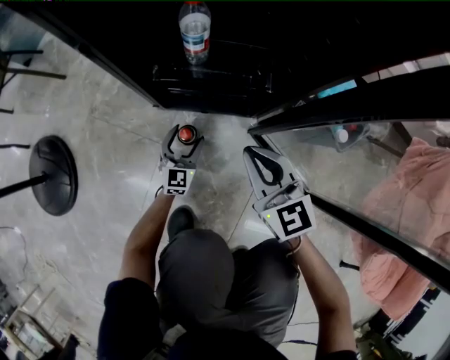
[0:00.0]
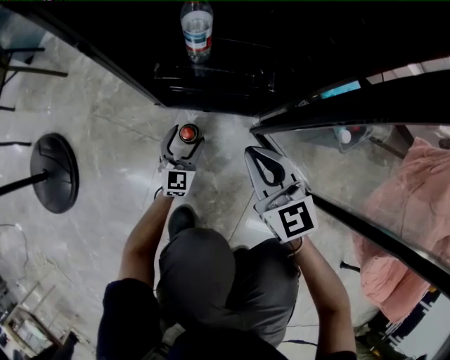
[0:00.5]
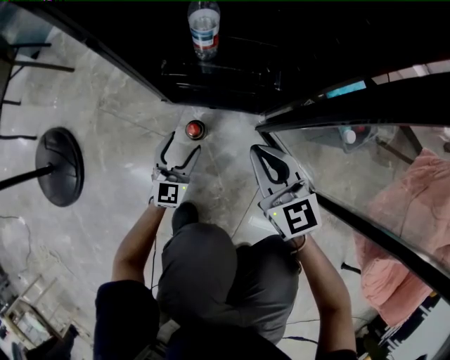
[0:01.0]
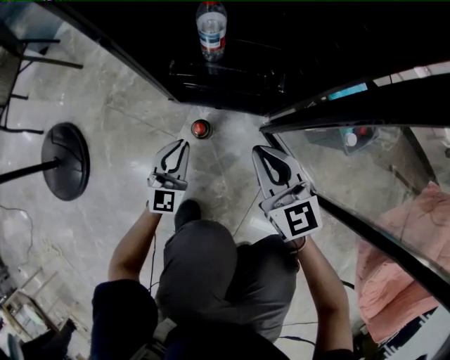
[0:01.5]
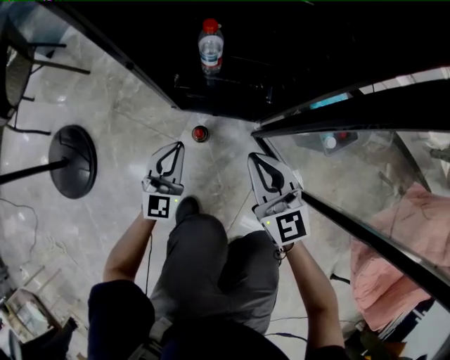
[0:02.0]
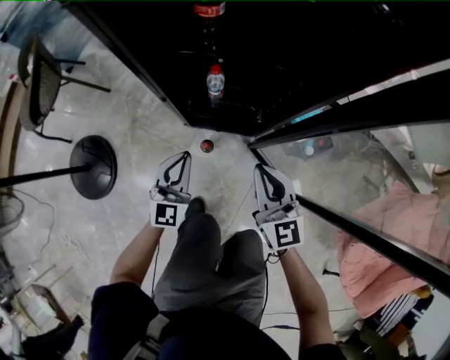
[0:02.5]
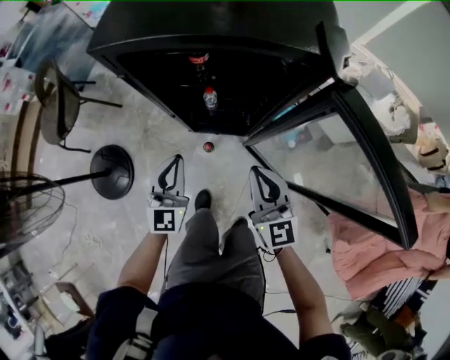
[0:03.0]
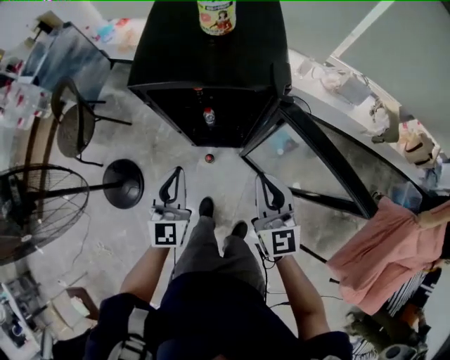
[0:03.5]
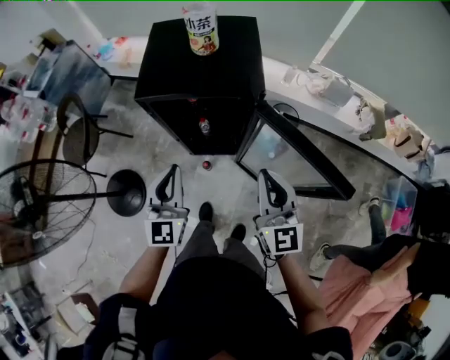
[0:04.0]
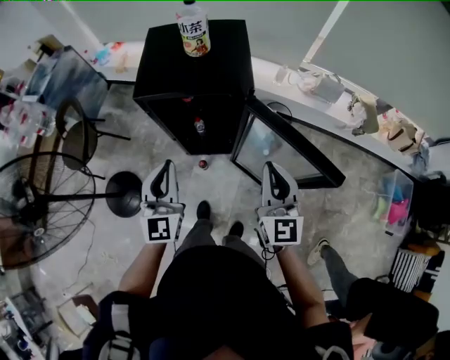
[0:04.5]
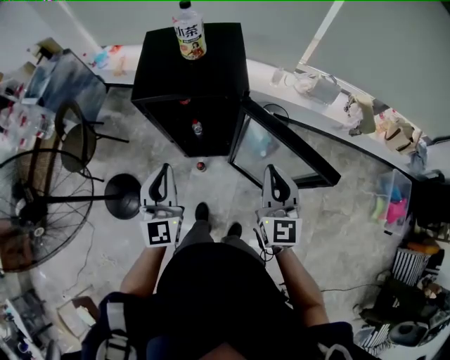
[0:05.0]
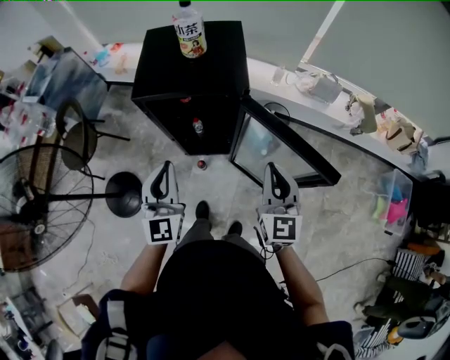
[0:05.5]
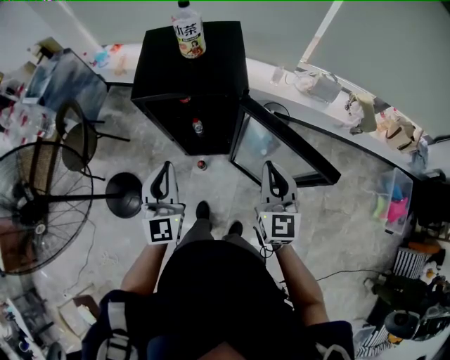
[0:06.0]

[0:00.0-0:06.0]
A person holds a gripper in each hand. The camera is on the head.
0:00.0 to 0:02.0: The left gripper travels upward by some 25 cm, and closes its fingers; the right gripper goes some 10 cm upward.
0:02.0 to 0:04.0: The two grippers go some 70 cm upward. The right gripper rotates approximately 20 degrees.
0:04.0 to 0:06.0: The left gripper shifts by roughly 5 cm. Meanwhile the right gripper moves approximately 5 cm.

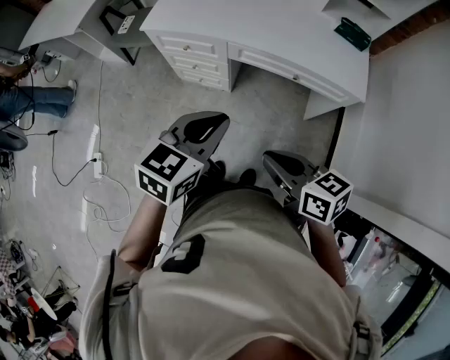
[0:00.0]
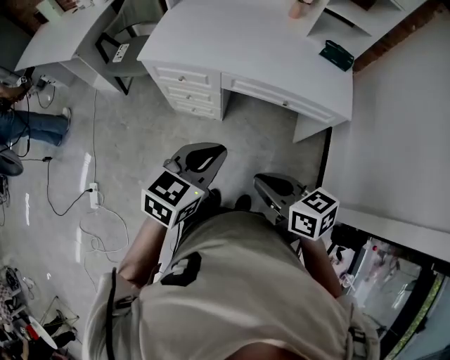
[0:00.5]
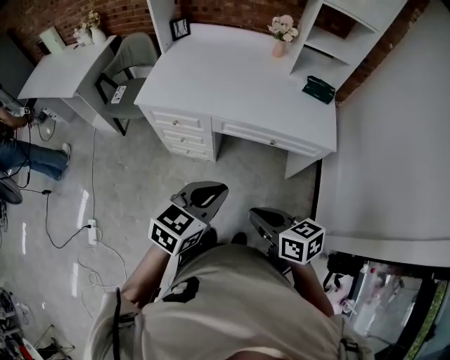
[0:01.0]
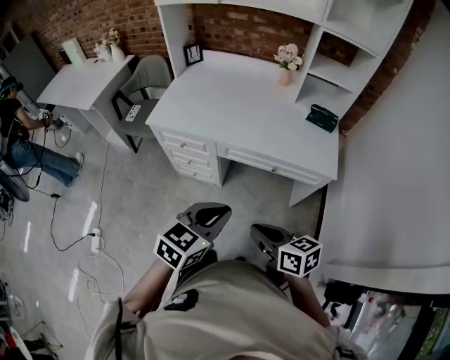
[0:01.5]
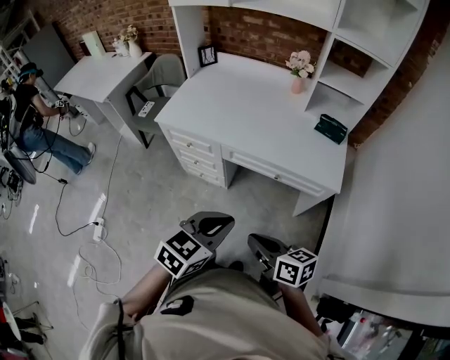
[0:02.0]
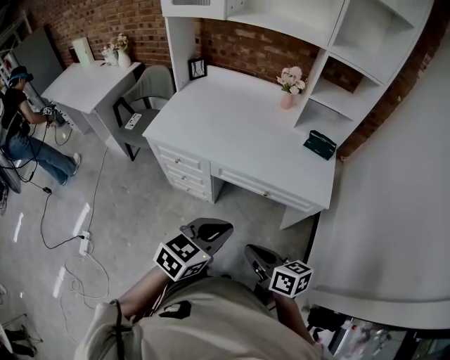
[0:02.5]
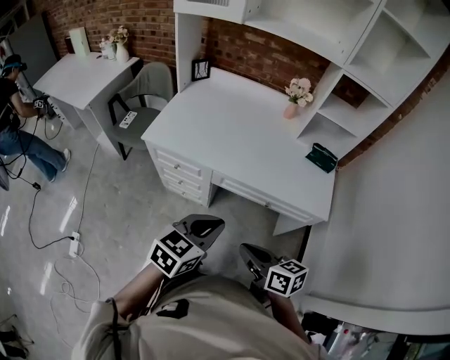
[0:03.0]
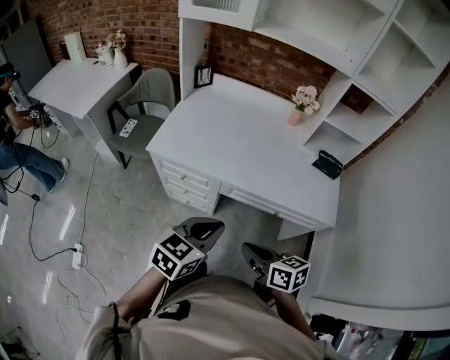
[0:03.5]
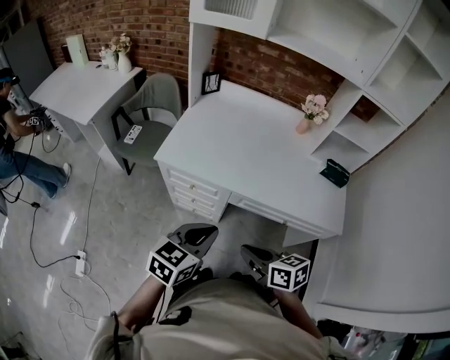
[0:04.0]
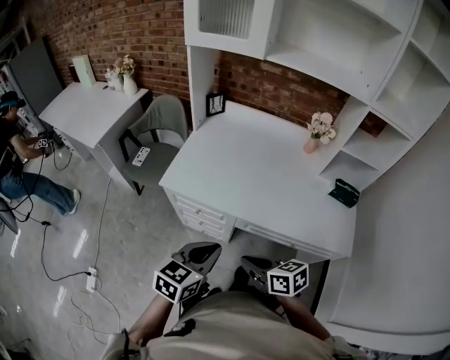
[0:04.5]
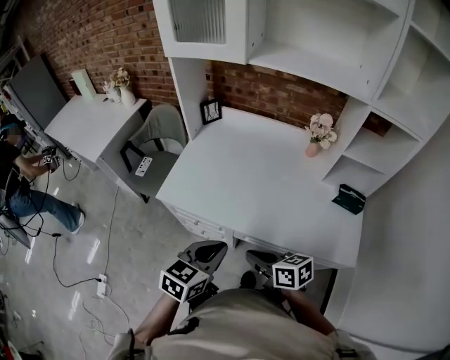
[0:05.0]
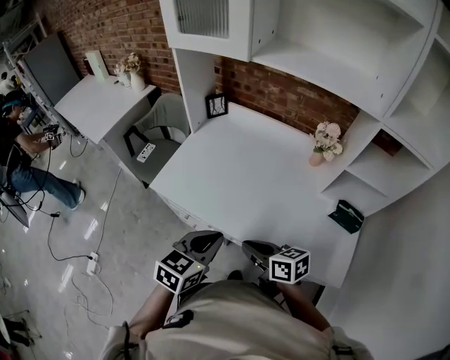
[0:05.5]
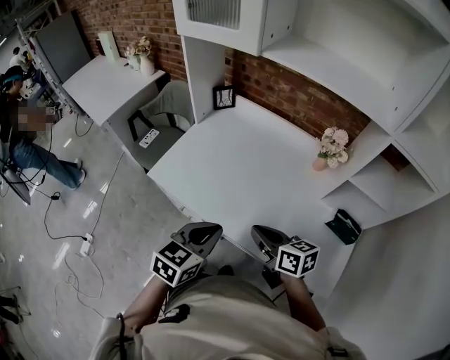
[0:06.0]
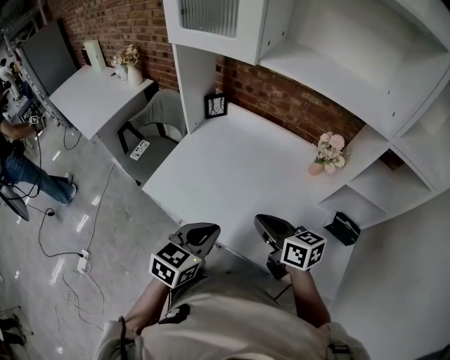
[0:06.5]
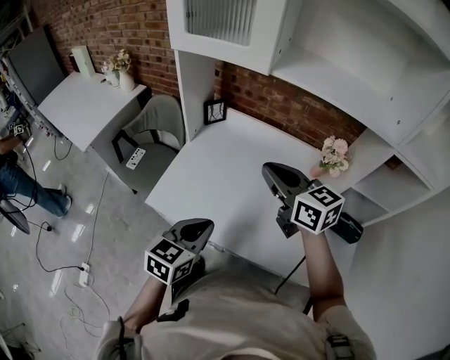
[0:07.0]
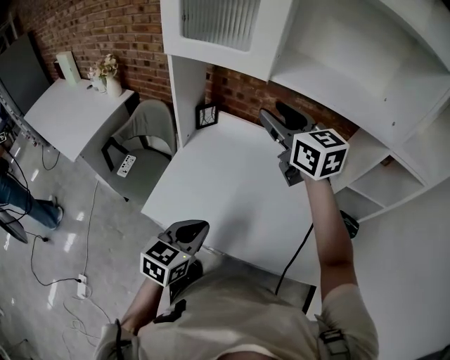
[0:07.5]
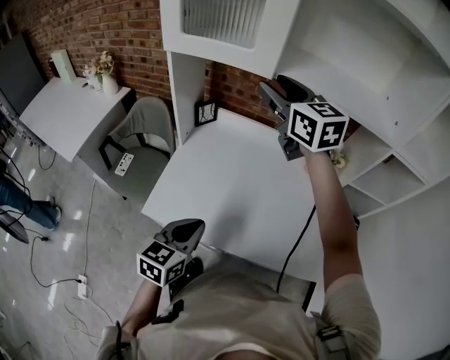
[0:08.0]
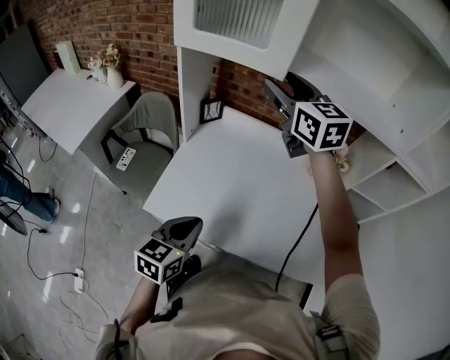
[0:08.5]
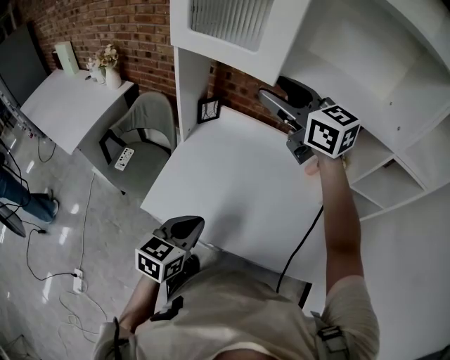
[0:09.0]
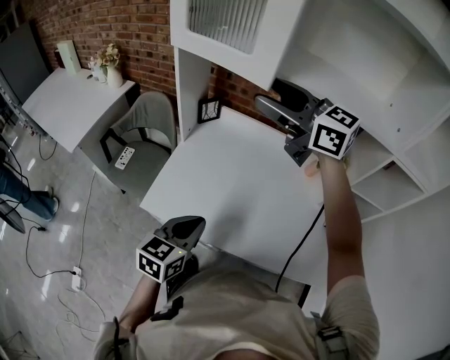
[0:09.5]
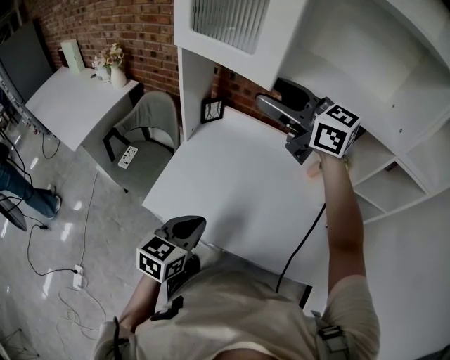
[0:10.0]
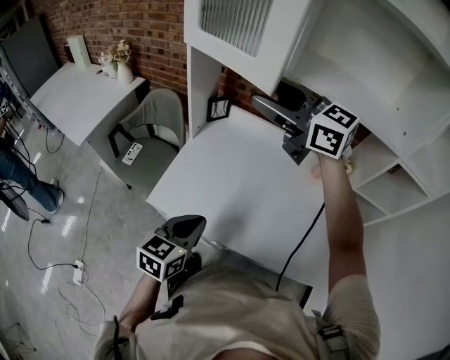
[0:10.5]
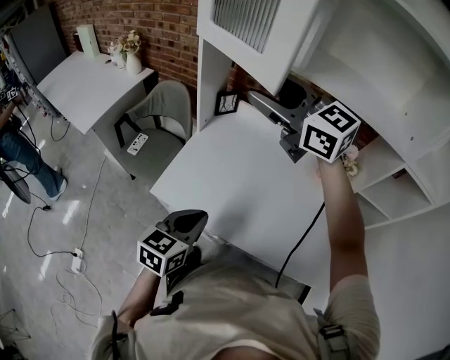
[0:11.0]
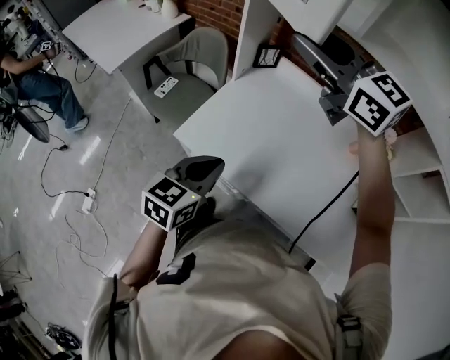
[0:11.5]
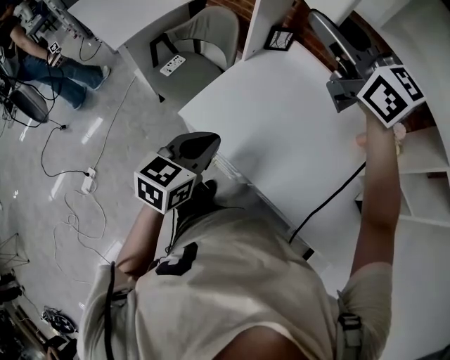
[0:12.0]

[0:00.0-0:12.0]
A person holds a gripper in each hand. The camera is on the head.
0:00.0 to 0:02.0: The right gripper ends up about 5 cm from where it was. The left gripper travels to the right by about 10 cm.
0:02.0 to 0:04.0: The right gripper goes roughly 20 cm forward and to the left; the left gripper moves to the left and forward, some 25 cm.
0:04.0 to 0:06.0: The grippers both shift forward and to the right by some 25 cm.
0:06.0 to 0:08.0: The right gripper is displaced forward and upward by about 50 cm, changes its angle by about 50 degrees, and opens. Meanwhile the left gripper moves to the left and forward, about 15 cm.
0:08.0 to 0:10.0: The right gripper moves backward, roughly 5 cm, and turns by roughly 30 degrees.
0:10.0 to 0:12.0: Both grippers travel together to the left, about 10 cm.

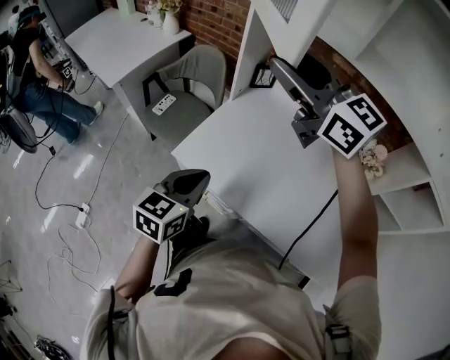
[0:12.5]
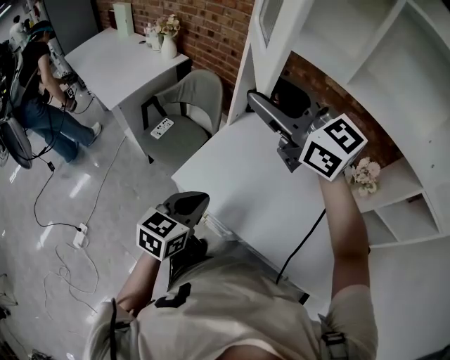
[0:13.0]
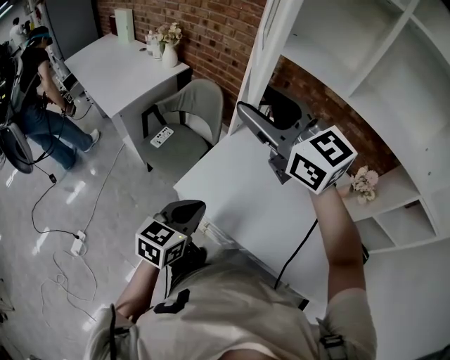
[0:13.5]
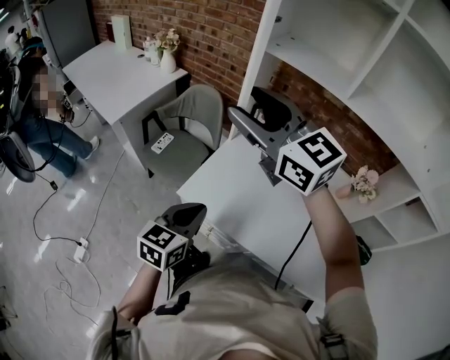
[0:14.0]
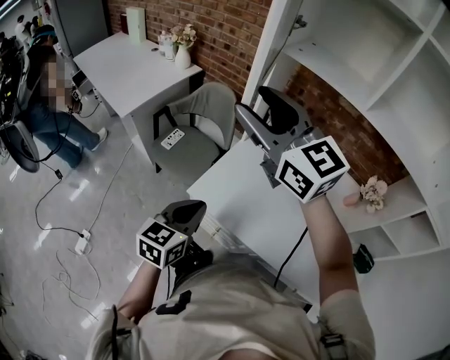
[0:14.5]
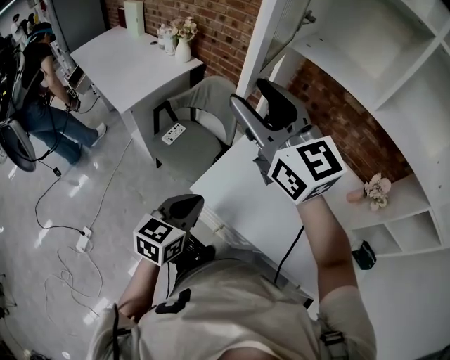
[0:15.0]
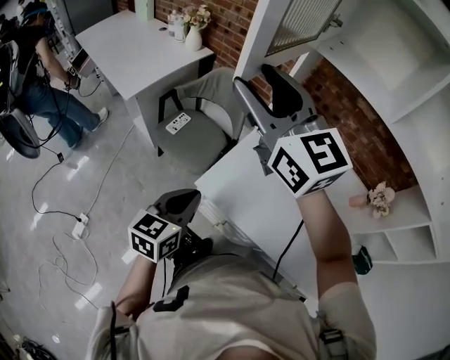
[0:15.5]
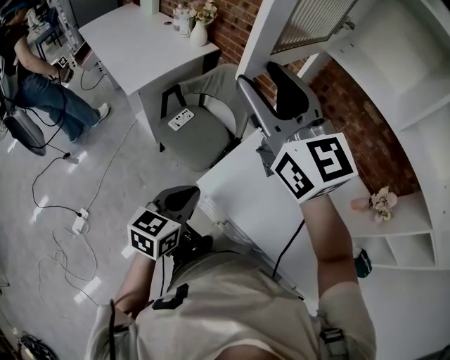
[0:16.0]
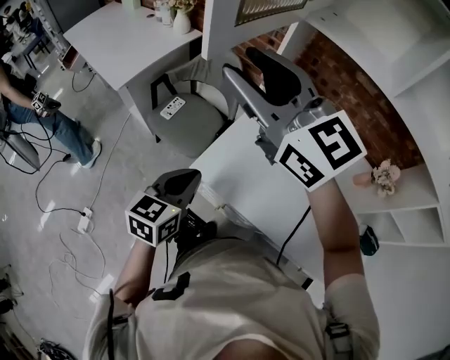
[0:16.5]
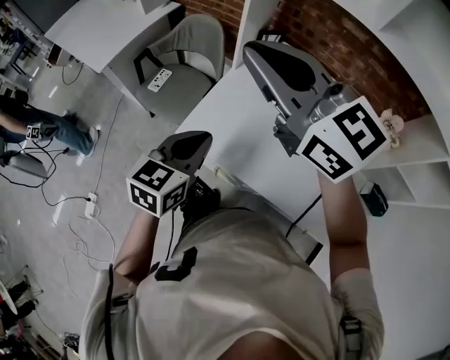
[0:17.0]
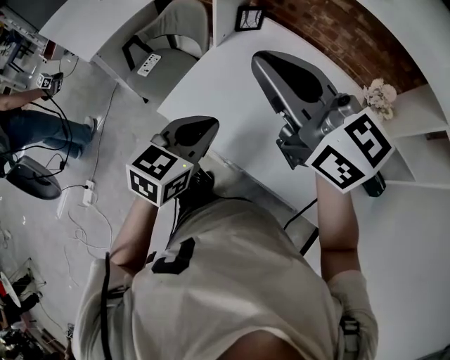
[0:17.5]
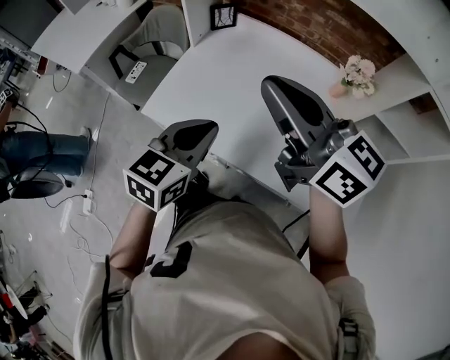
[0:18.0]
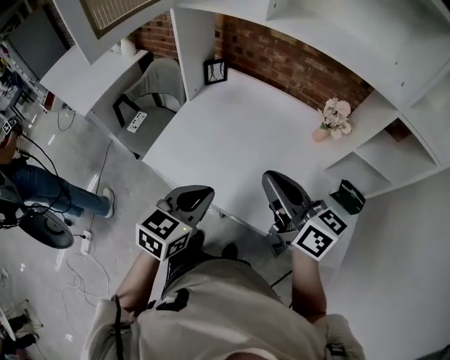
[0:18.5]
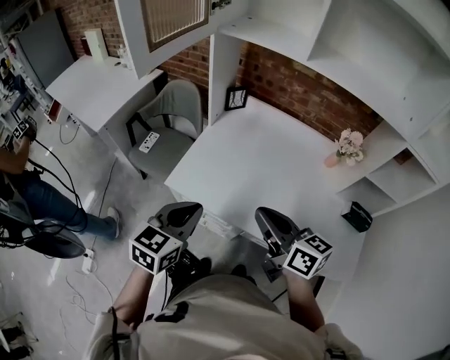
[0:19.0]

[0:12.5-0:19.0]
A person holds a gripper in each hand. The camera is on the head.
0:12.5 to 0:14.5: The left gripper moves to the left, approximately 10 cm, while the right gripper moves to the left, about 10 cm.
0:14.5 to 0:17.0: The left gripper heads to the right, covering some 5 cm. The right gripper ends up about 5 cm from where it was, and closes its fingers.
0:17.0 to 0:19.0: The right gripper is displaced backward, downward and to the right by roughly 30 cm, and twists about 40 degrees clockwise, seen from behind. Meanwhile the left gripper shifts some 10 cm backward, and moves some 15 cm to the right and comes back.

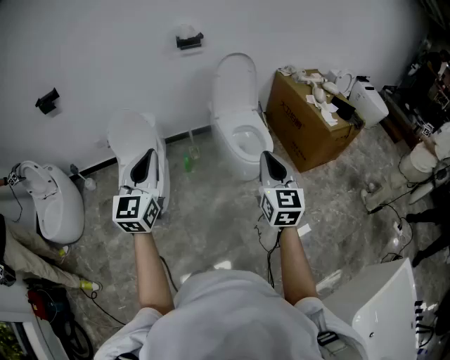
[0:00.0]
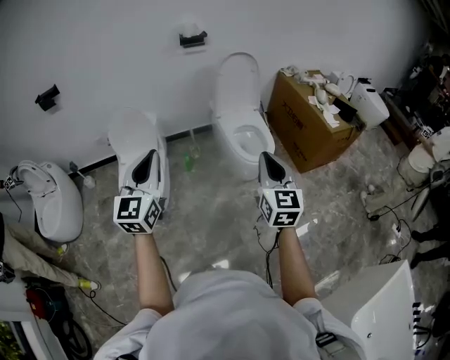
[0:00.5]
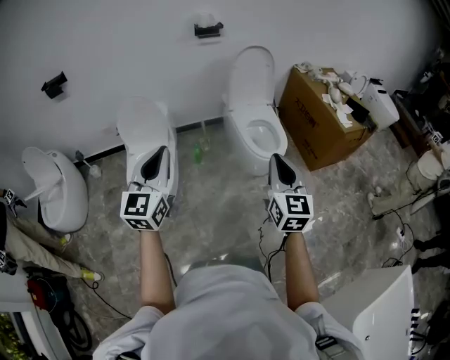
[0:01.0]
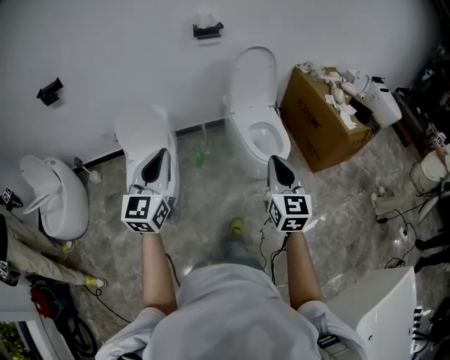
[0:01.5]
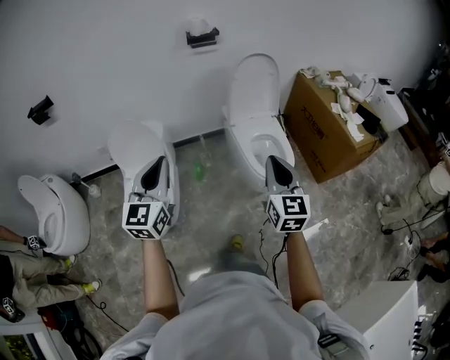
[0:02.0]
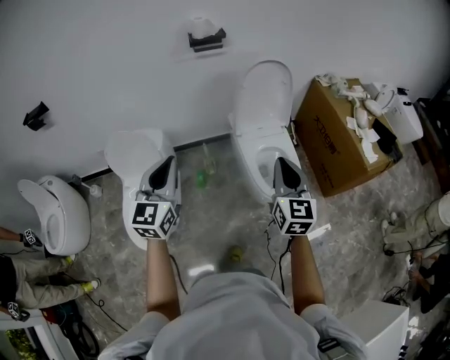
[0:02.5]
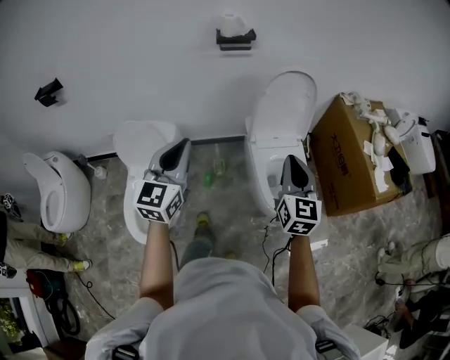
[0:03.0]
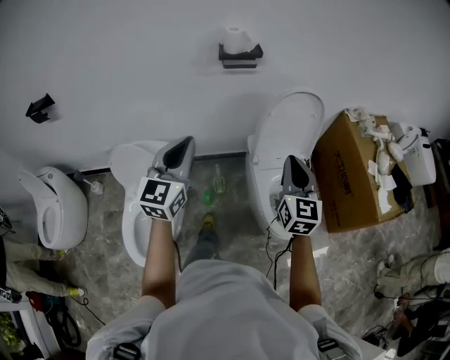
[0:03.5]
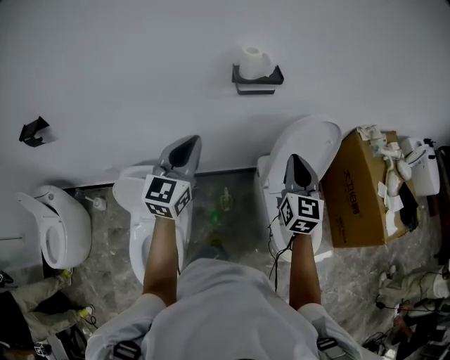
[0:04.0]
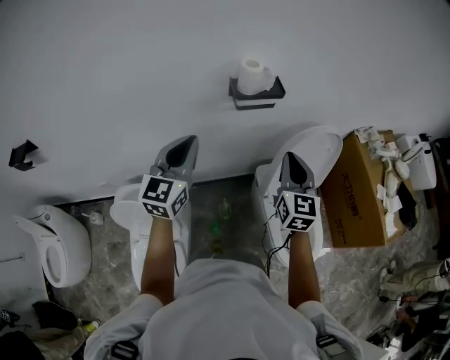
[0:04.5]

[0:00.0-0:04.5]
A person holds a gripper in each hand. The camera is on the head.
0:00.0 to 0:02.0: Both grippers move forward, roughly 20 cm.
0:02.0 to 0:04.5: The pair of grippers is taken forward, approximately 60 cm.
